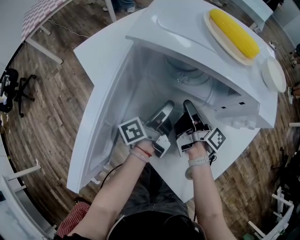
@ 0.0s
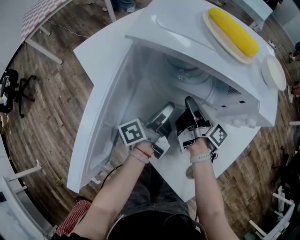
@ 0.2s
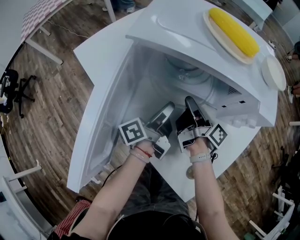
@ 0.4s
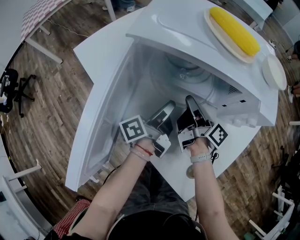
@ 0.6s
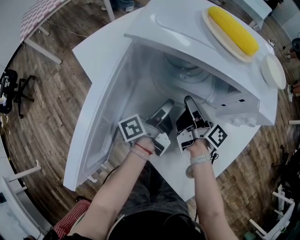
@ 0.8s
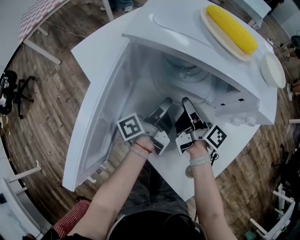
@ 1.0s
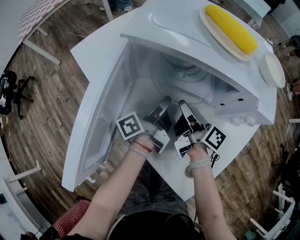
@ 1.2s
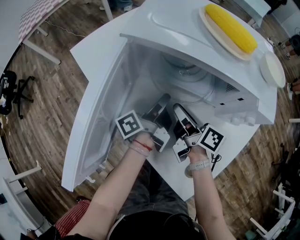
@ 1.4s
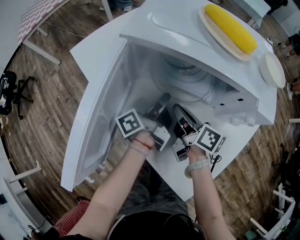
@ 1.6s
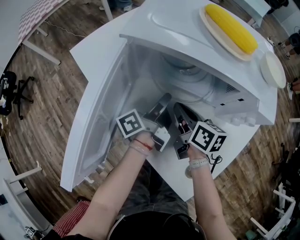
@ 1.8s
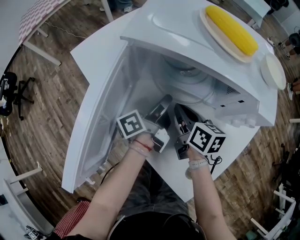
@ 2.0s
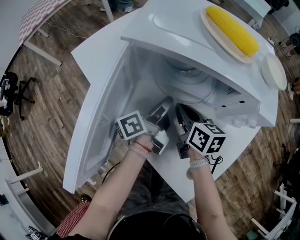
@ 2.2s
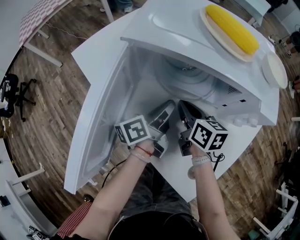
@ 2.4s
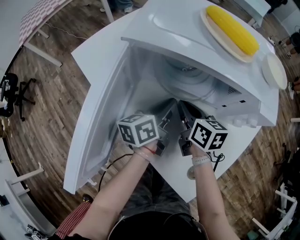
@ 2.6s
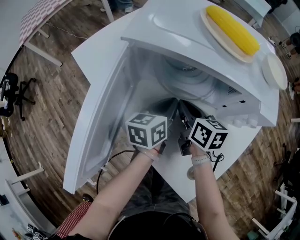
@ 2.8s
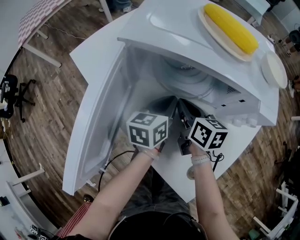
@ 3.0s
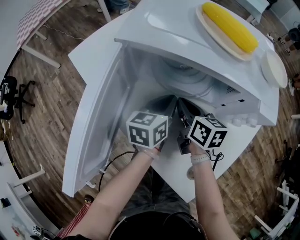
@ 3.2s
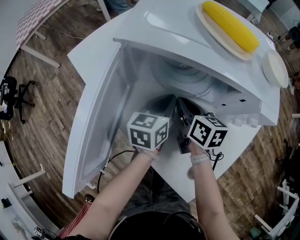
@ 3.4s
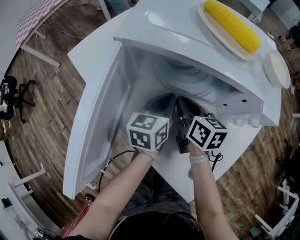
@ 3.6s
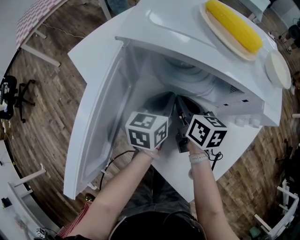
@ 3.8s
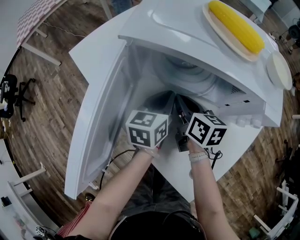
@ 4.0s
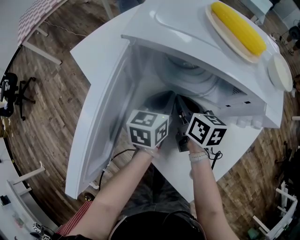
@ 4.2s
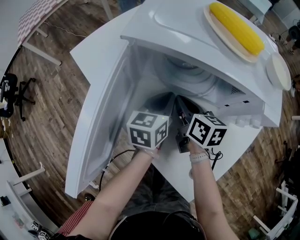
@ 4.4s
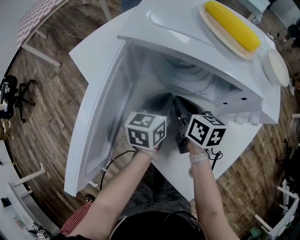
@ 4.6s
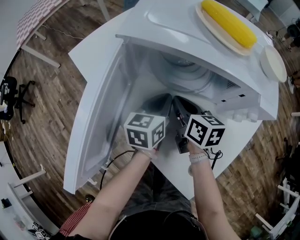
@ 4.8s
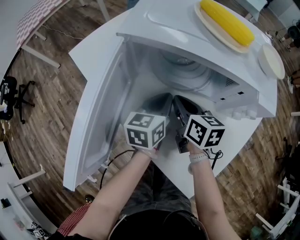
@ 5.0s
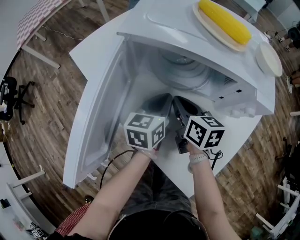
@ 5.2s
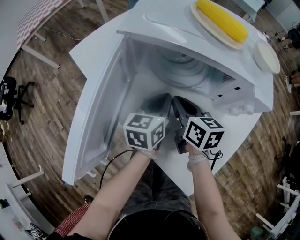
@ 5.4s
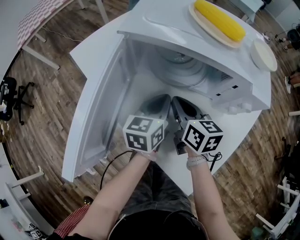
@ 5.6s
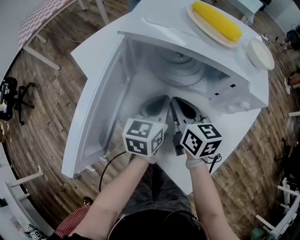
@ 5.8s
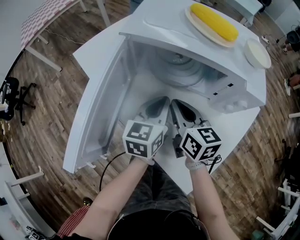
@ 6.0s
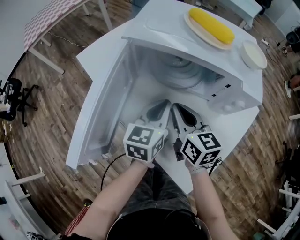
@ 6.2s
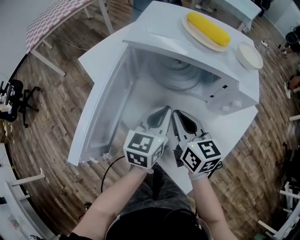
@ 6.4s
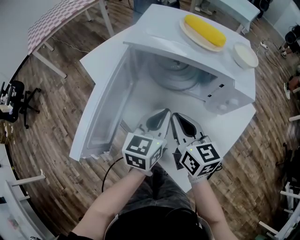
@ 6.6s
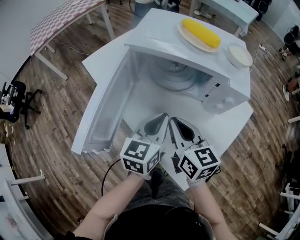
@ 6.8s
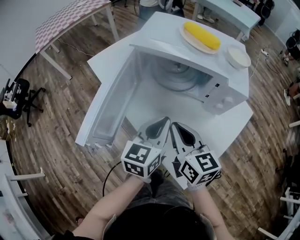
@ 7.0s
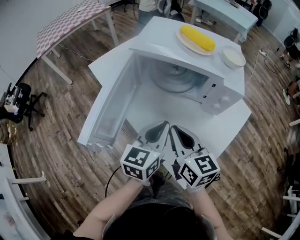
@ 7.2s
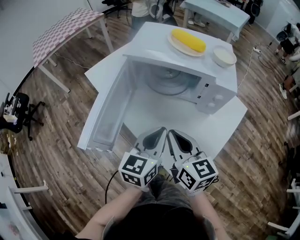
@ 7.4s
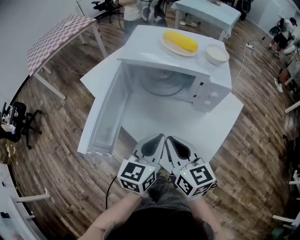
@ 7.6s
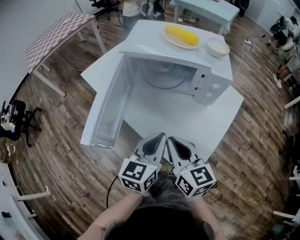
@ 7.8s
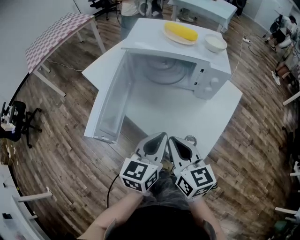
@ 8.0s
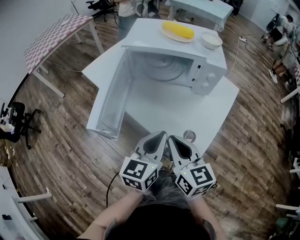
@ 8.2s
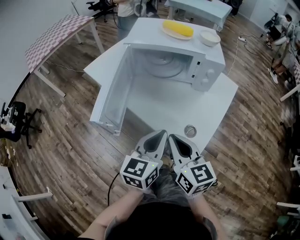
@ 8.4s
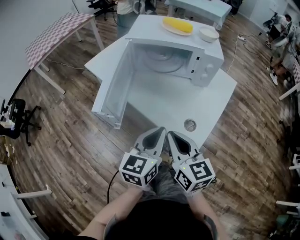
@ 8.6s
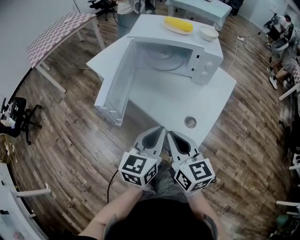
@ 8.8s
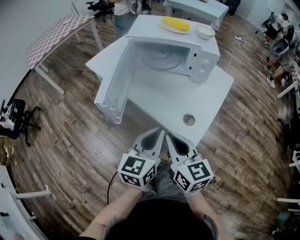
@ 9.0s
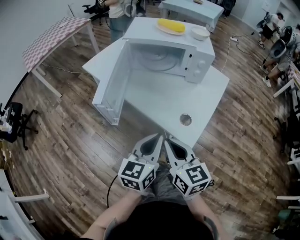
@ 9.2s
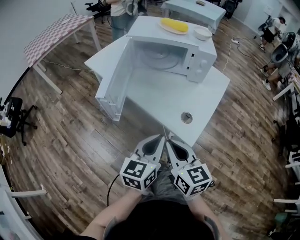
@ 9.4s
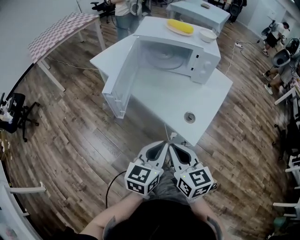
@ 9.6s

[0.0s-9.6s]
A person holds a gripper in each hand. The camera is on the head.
0.0s to 1.6s: The right gripper rotates some 30 degrees.
1.6s to 3.2s: The right gripper changes its angle by about 30 degrees.
4.8s to 6.4s: The right gripper heads upward, covering roughly 10 cm.
6.4s to 8.0s: The right gripper moves about 20 cm.
8.0s to 9.6s: The right gripper changes place by some 15 cm.

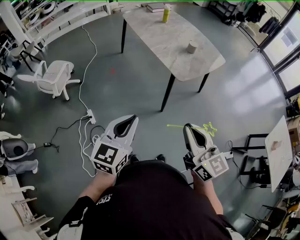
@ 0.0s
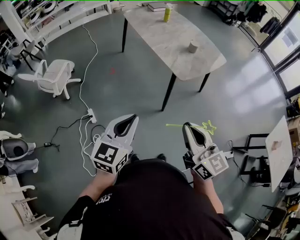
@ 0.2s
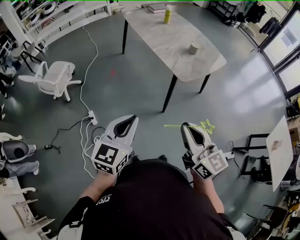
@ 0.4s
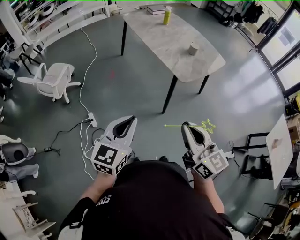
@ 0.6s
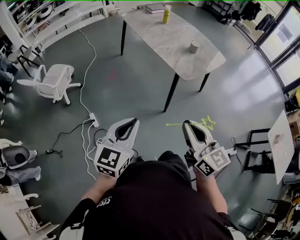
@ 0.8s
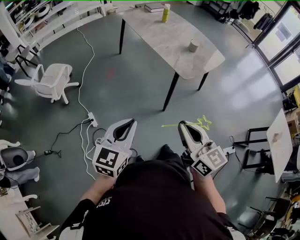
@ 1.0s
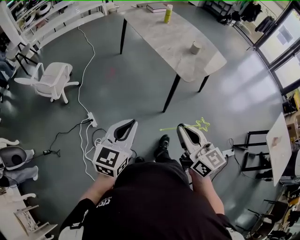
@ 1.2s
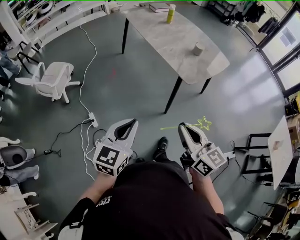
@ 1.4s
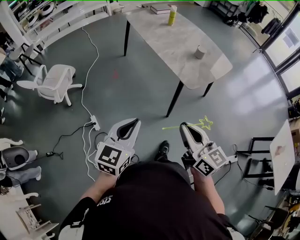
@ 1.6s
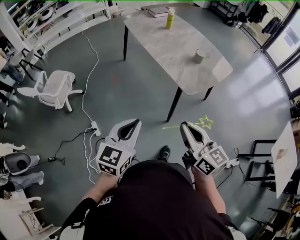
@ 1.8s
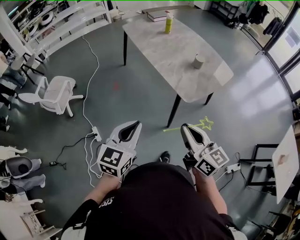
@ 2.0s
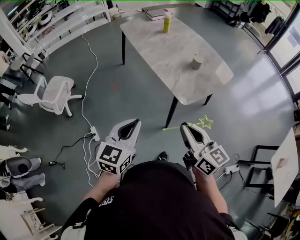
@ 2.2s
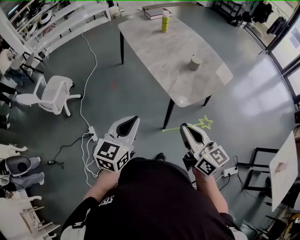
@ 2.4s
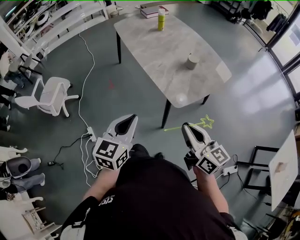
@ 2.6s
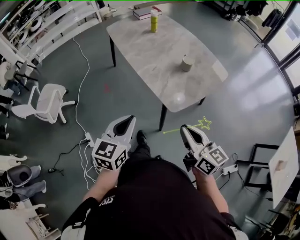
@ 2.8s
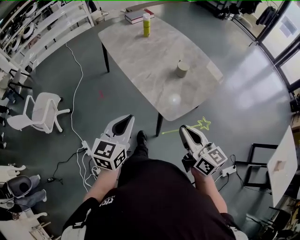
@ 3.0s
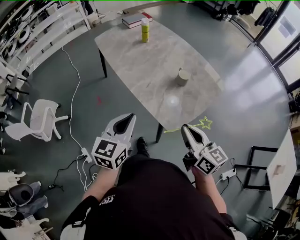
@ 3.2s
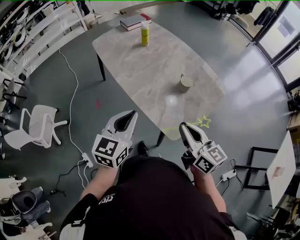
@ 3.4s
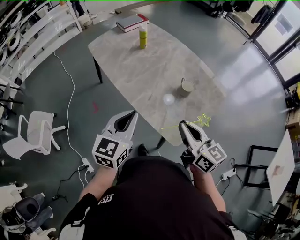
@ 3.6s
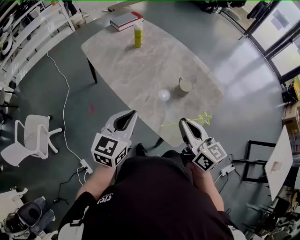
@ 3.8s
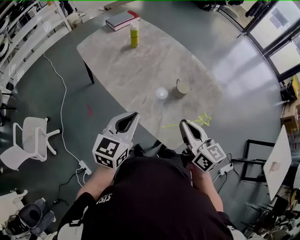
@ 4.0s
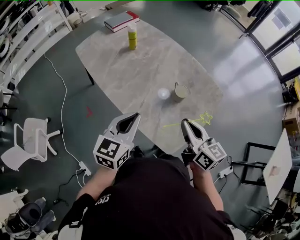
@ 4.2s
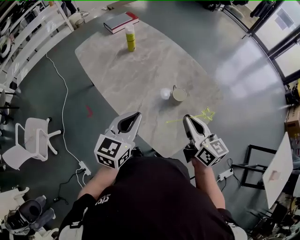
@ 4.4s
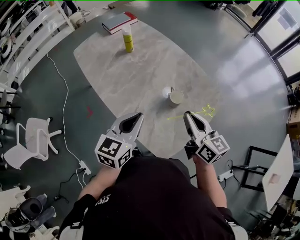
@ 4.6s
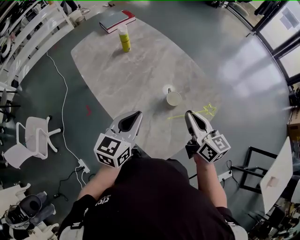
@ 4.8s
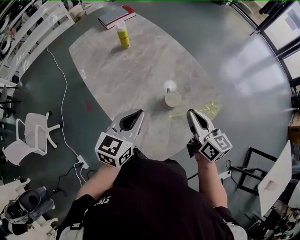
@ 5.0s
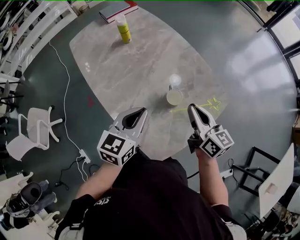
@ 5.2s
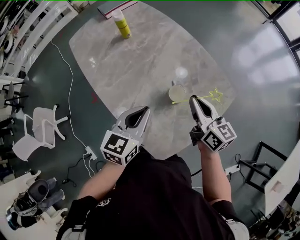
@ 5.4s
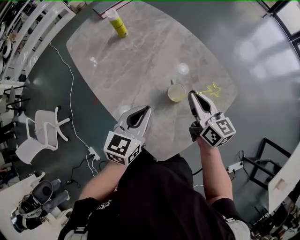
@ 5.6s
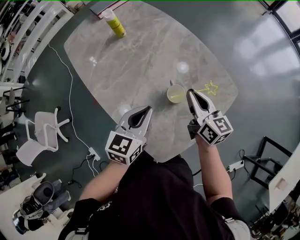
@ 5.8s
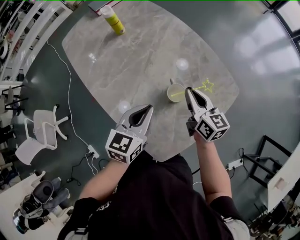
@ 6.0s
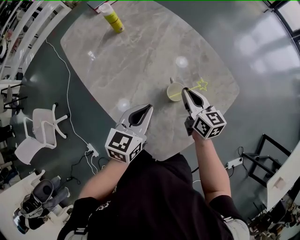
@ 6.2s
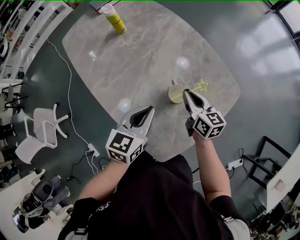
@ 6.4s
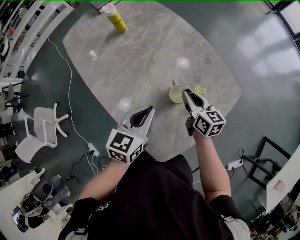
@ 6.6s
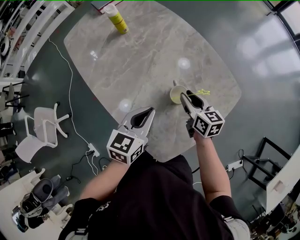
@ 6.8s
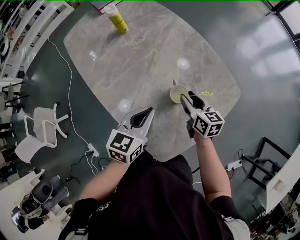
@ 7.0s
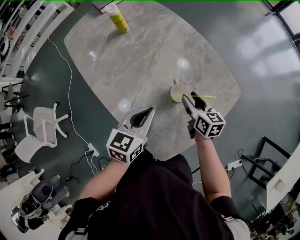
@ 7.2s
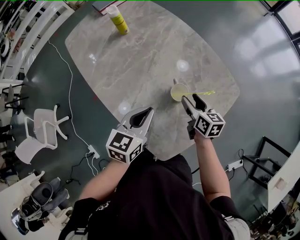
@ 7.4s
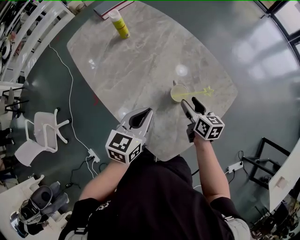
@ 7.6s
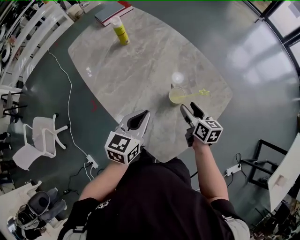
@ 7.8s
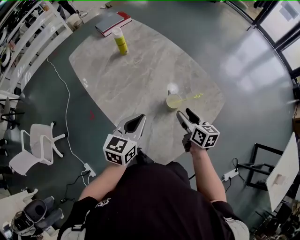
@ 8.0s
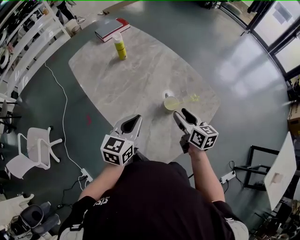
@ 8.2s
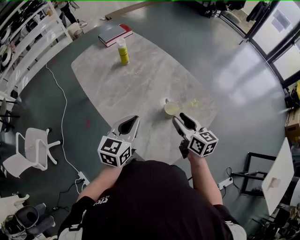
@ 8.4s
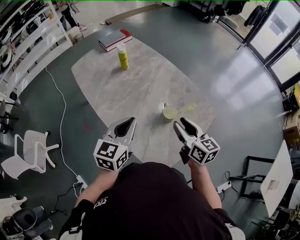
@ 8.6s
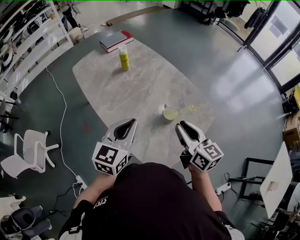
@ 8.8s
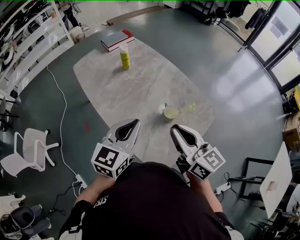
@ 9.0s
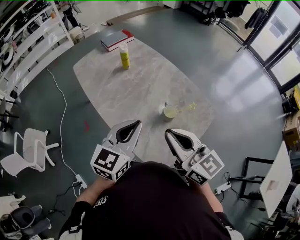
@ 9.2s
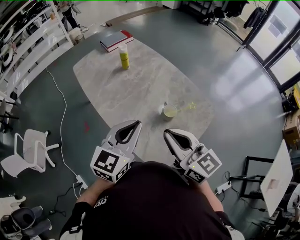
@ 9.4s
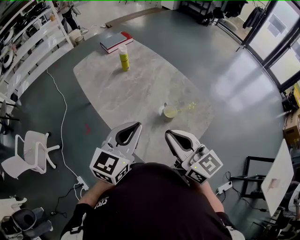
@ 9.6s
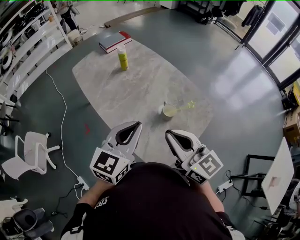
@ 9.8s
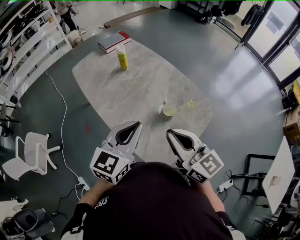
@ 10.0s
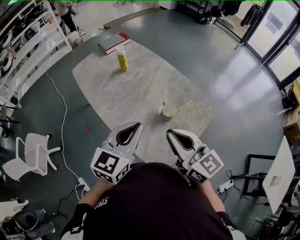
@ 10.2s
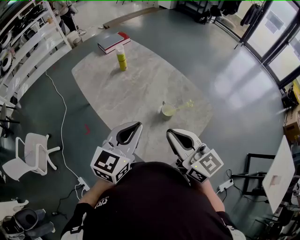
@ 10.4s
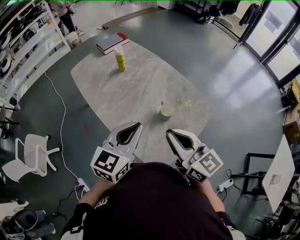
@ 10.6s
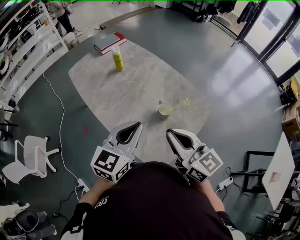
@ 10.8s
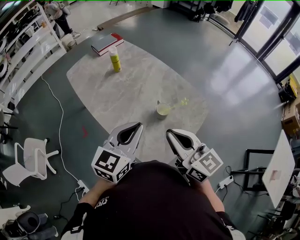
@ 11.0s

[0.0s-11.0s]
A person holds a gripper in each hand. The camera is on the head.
0.0s to 1.6s: The grippers both shift forward and to the left by some 10 cm.
1.6s to 3.2s: Both grippers travel together forward and to the right, some 35 cm.
3.2s to 4.8s: The right gripper moves forward, some 25 cm, while the left gripper is displaced forward and to the right by approximately 25 cm.
4.8s to 6.2s: The left gripper is displaced downward and forward by about 15 cm; the right gripper travels downward and forward by roughly 20 cm.
6.2s to 7.8s: The left gripper moves approximately 5 cm. The right gripper moves backward, roughly 5 cm, and opens.
7.8s to 9.4s: The left gripper heads upward and backward, covering roughly 15 cm, while the right gripper goes roughly 30 cm upward, backward and to the left, turns by roughly 40 degrees, and closes its fingers.
9.4s to 11.0s: There are only small adjustments of the grippers.

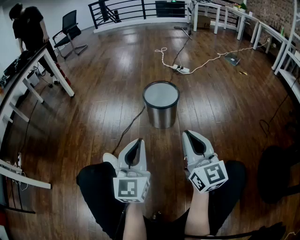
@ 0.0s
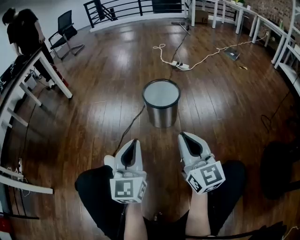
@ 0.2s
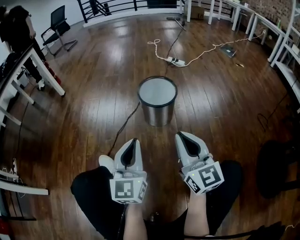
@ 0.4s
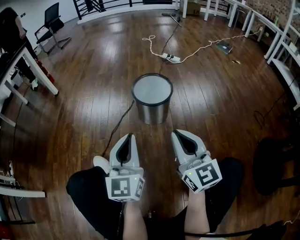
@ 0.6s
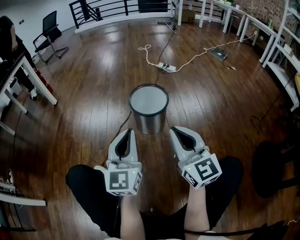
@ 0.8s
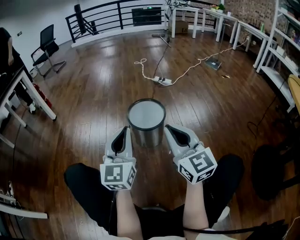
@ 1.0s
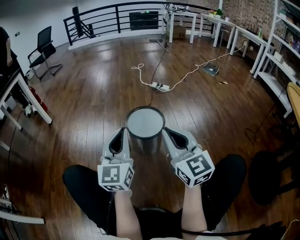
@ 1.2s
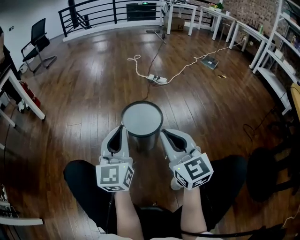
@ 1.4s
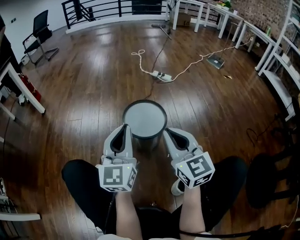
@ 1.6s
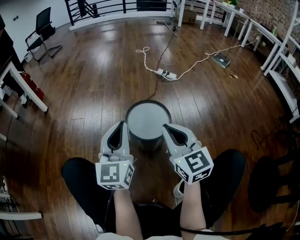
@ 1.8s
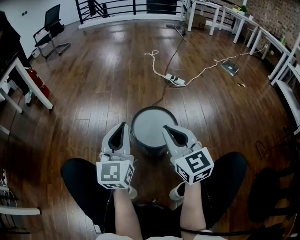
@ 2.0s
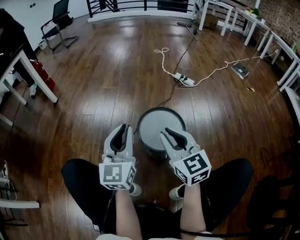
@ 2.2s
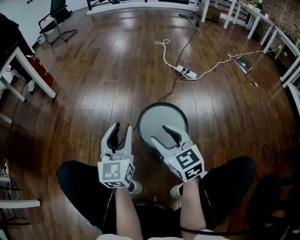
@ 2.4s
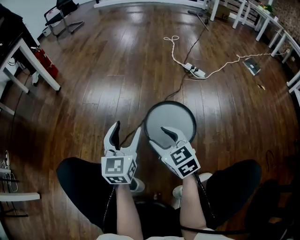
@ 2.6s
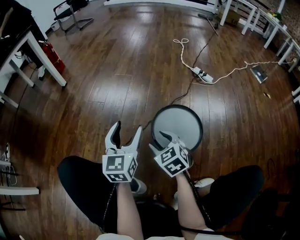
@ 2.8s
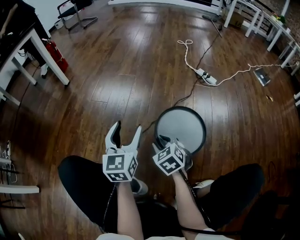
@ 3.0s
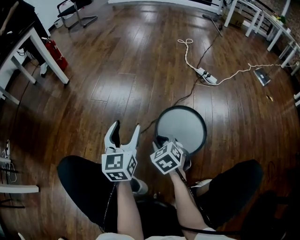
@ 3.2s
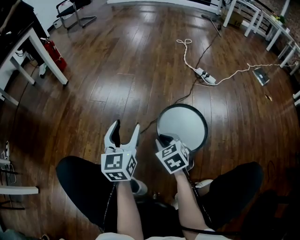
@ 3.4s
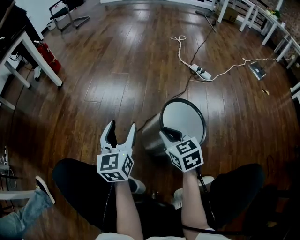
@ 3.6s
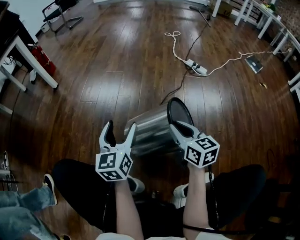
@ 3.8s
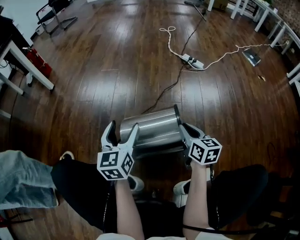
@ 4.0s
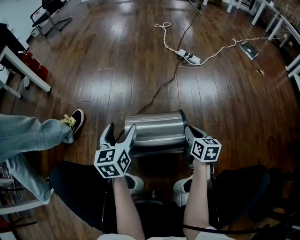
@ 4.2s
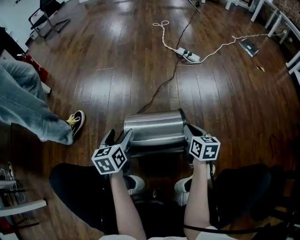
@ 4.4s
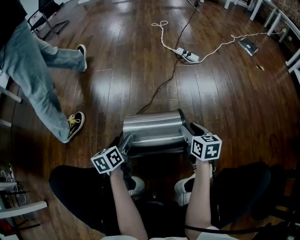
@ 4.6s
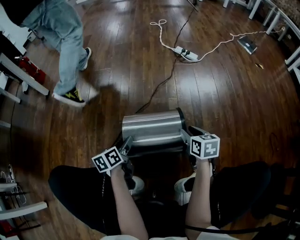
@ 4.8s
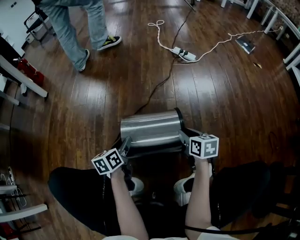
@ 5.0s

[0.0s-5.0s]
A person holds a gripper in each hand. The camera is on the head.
0.0s to 1.6s: The two grippers go approximately 25 cm forward.
1.6s to 3.4s: The right gripper moves downward, forward and to the left, approximately 30 cm, angles its fingers downward, by approximately 40 degrees, and opens, then closes once more. The left gripper travels forward, downward and to the left by approximately 20 cm, rotates some 30 degrees, and opens.
3.4s to 5.0s: The right gripper shifts roughly 20 cm to the right, and rolls clockwise, seen from behind, by approximately 40 degrees; the left gripper is displaced downward by roughly 20 cm, changes its angle by about 40 degrees, and closes up.
